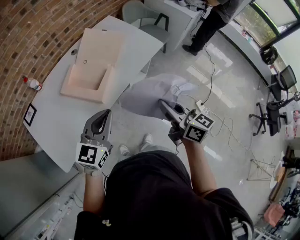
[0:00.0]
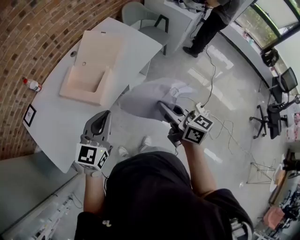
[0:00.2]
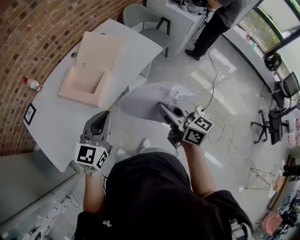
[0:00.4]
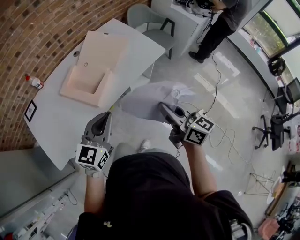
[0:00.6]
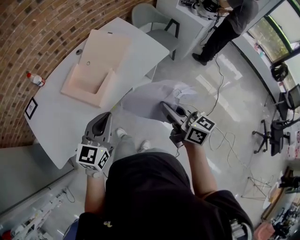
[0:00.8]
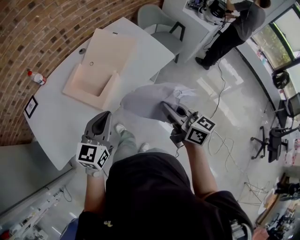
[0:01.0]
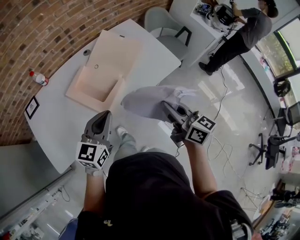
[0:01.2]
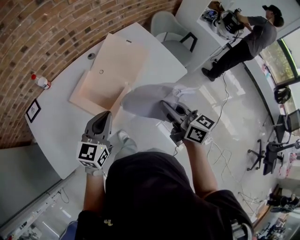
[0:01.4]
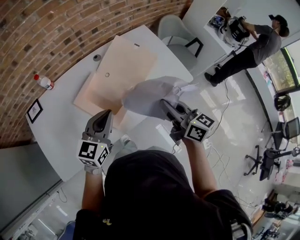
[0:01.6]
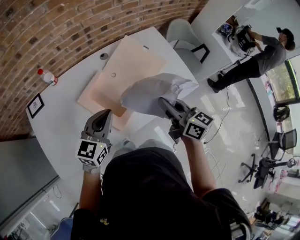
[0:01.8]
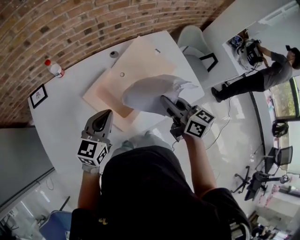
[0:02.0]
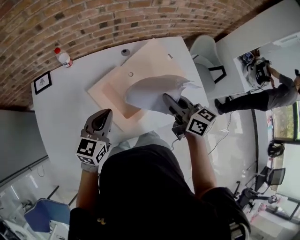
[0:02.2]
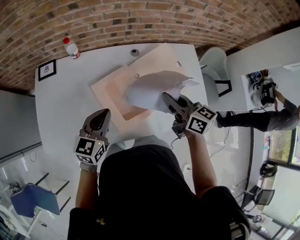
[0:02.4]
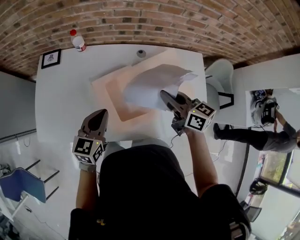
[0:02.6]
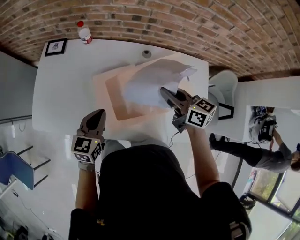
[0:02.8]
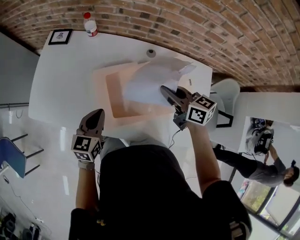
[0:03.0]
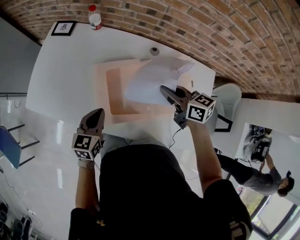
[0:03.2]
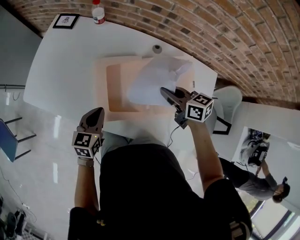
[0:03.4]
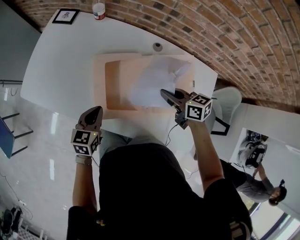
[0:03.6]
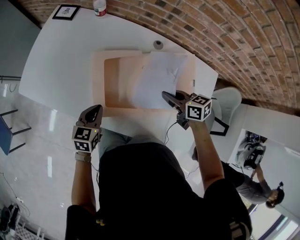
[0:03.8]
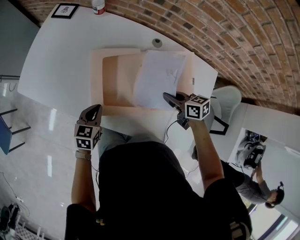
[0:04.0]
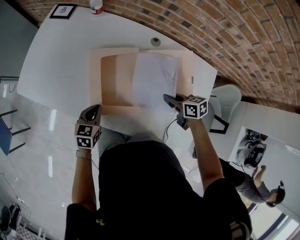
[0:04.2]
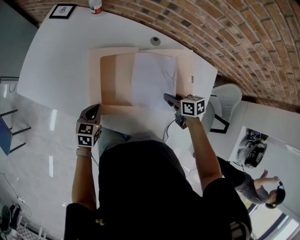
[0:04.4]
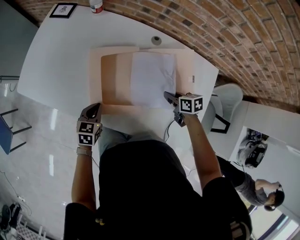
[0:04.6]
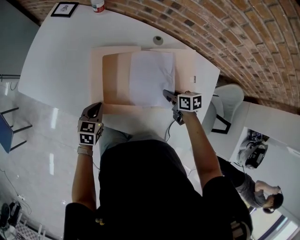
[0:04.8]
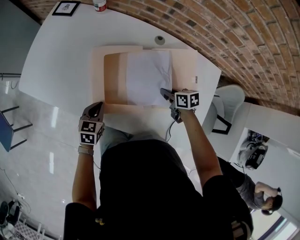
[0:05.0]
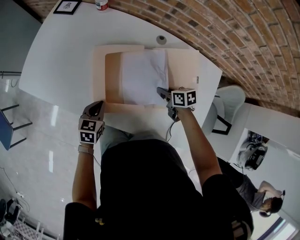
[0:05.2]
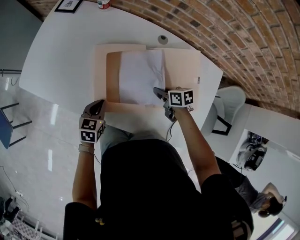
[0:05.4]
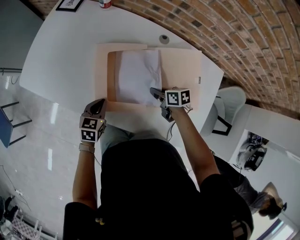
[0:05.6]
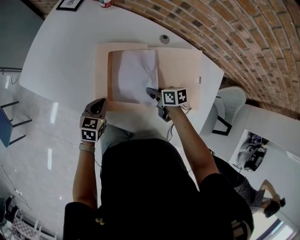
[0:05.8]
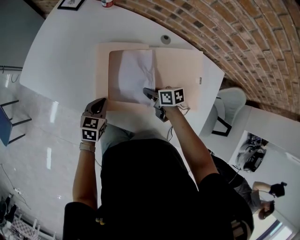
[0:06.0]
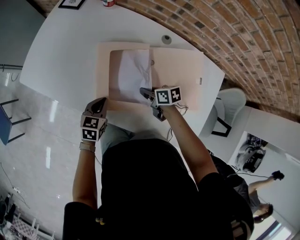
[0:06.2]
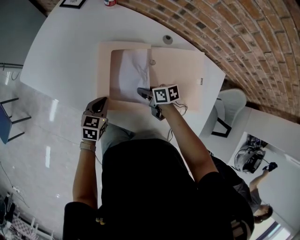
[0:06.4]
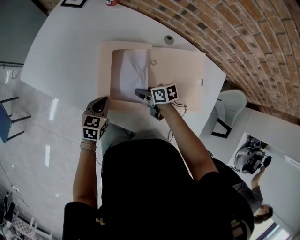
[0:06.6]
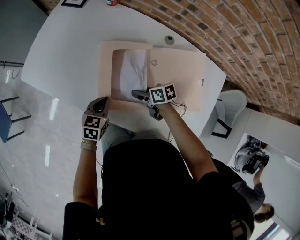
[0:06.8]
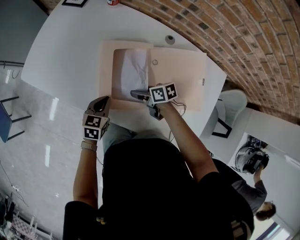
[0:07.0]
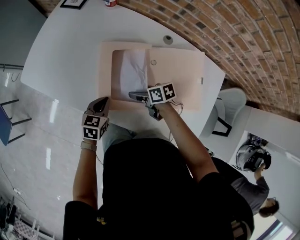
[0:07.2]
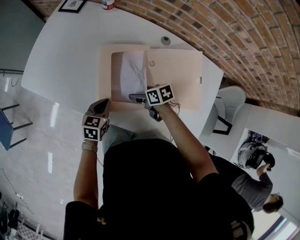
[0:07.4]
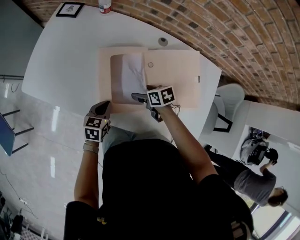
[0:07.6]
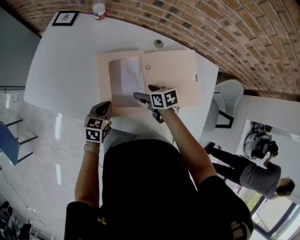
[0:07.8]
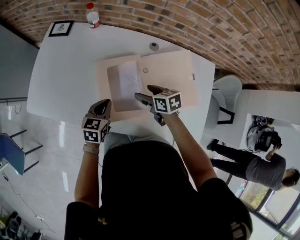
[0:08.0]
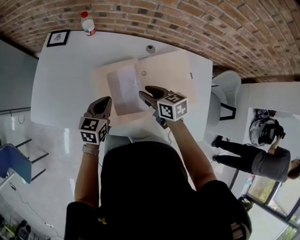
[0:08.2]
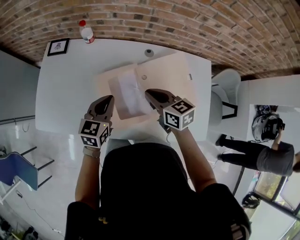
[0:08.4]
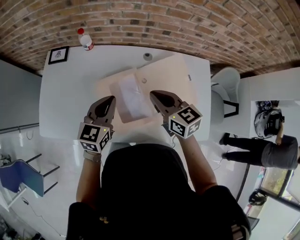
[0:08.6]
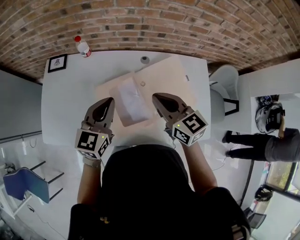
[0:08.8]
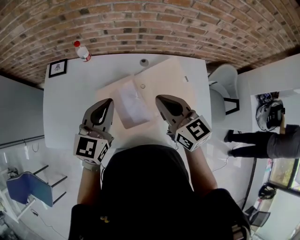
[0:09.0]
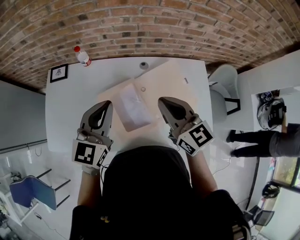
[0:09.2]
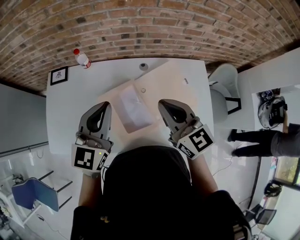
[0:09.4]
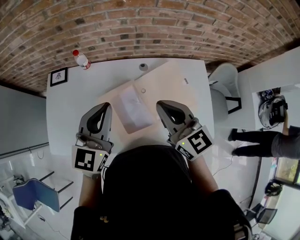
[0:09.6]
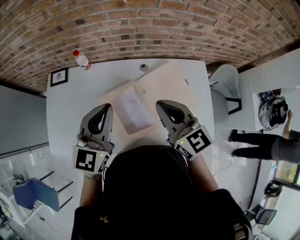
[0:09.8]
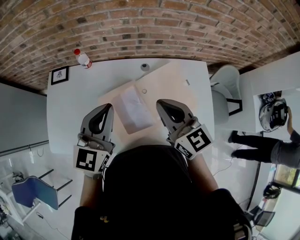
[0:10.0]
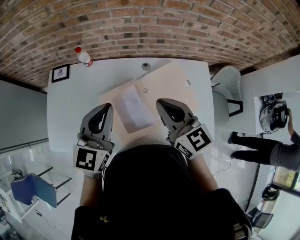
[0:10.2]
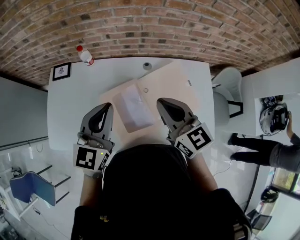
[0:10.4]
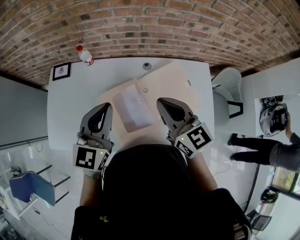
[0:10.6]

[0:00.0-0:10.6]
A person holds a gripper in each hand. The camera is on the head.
0:00.0 to 0:01.6: Both grippers move forward, approximately 20 cm.
0:01.6 to 0:03.0: The left gripper travels downward by about 10 cm, and swivels some 50 degrees; the right gripper shifts by some 30 cm, and swivels approximately 60 degrees.
0:03.0 to 0:04.6: The grippers both shift downward by approximately 20 cm. The right gripper turns by roughly 30 degrees.
0:04.6 to 0:06.0: The right gripper is displaced to the left by approximately 15 cm.
0:06.0 to 0:07.6: The right gripper opens up.
0:07.6 to 0:09.0: Both grippers move upward, approximately 35 cm. The left gripper points its fingers some 30 degrees further upward; the right gripper points its fingers approximately 40 degrees further upward, and closes its fingers.
0:09.0 to 0:10.6: The grippers stay close to where they were, moving slightly.

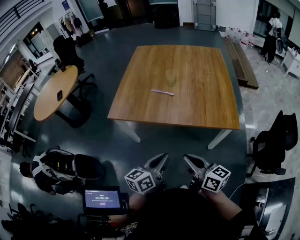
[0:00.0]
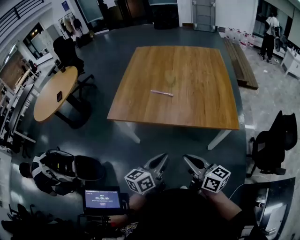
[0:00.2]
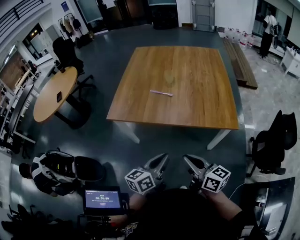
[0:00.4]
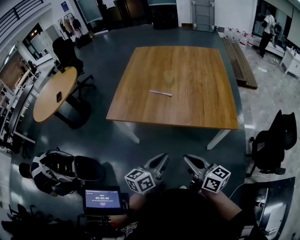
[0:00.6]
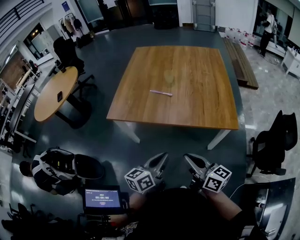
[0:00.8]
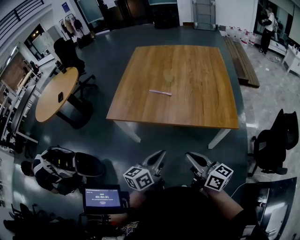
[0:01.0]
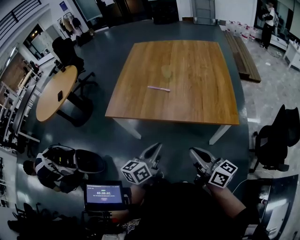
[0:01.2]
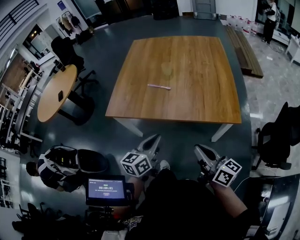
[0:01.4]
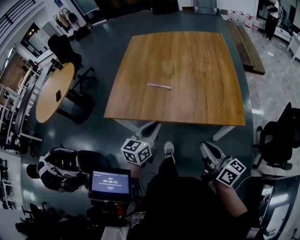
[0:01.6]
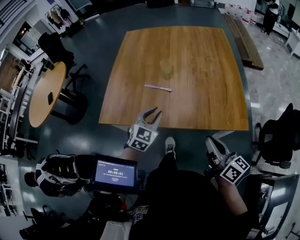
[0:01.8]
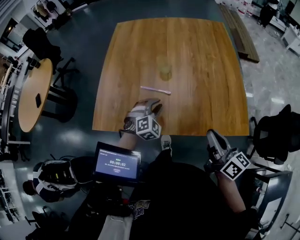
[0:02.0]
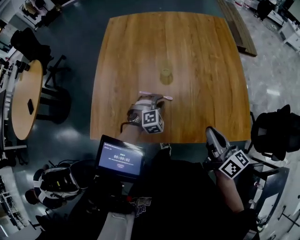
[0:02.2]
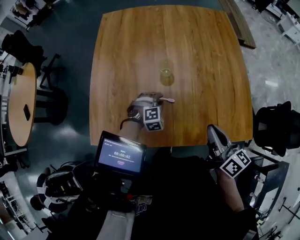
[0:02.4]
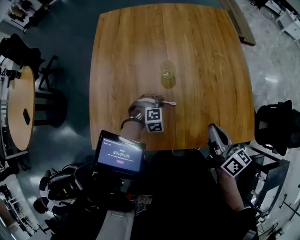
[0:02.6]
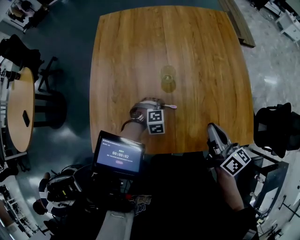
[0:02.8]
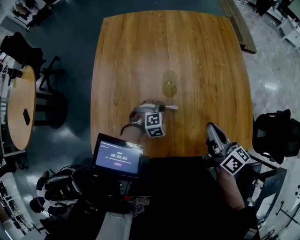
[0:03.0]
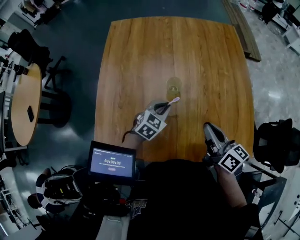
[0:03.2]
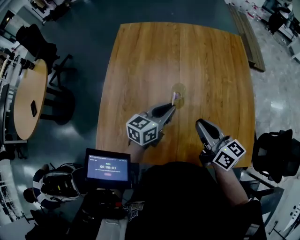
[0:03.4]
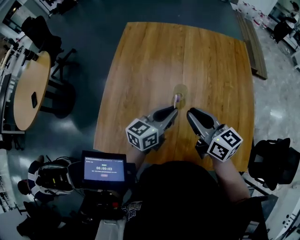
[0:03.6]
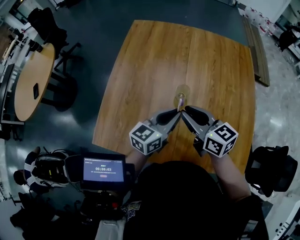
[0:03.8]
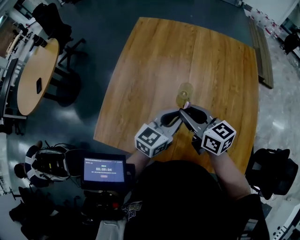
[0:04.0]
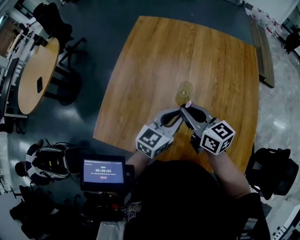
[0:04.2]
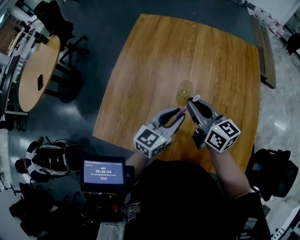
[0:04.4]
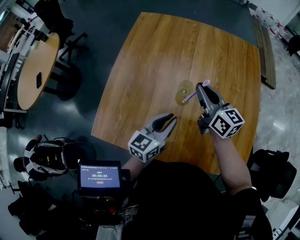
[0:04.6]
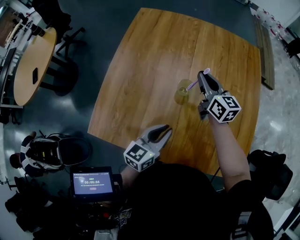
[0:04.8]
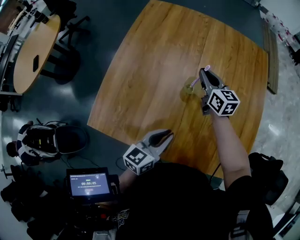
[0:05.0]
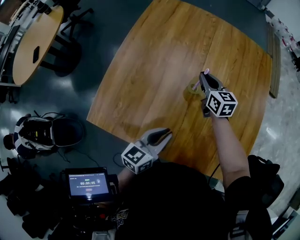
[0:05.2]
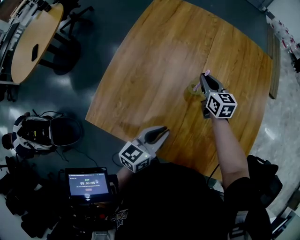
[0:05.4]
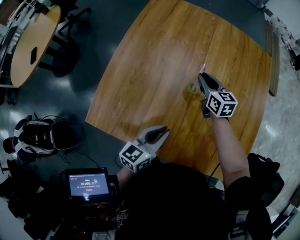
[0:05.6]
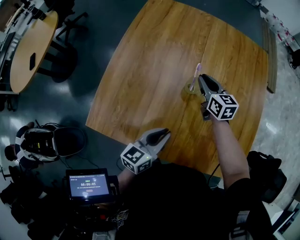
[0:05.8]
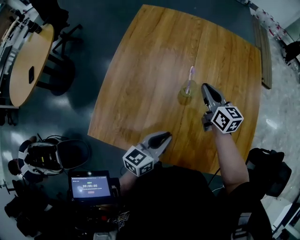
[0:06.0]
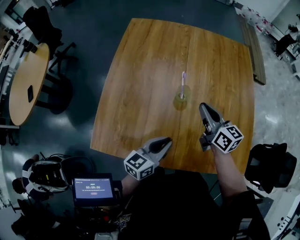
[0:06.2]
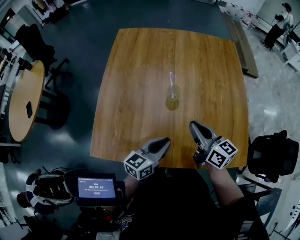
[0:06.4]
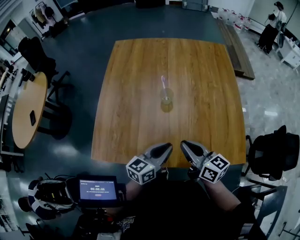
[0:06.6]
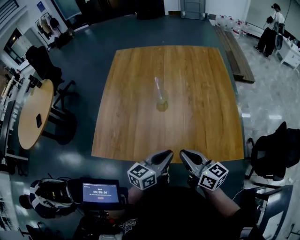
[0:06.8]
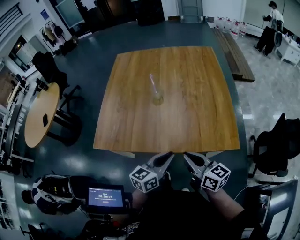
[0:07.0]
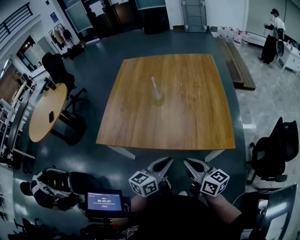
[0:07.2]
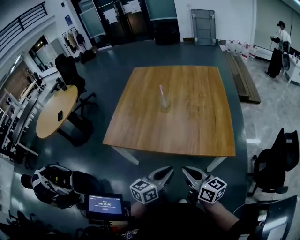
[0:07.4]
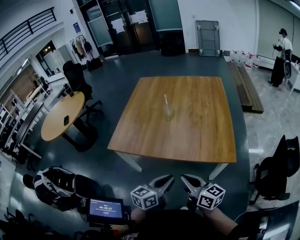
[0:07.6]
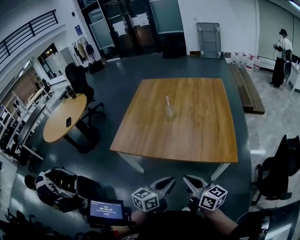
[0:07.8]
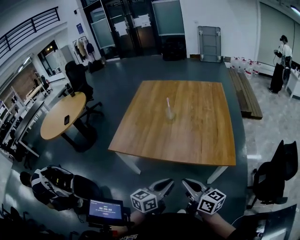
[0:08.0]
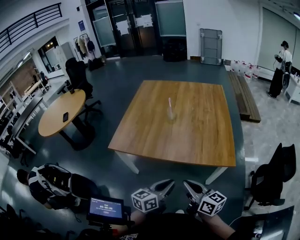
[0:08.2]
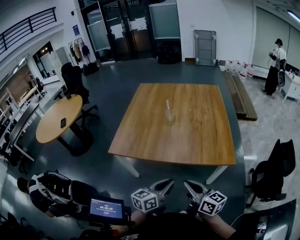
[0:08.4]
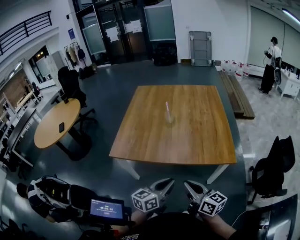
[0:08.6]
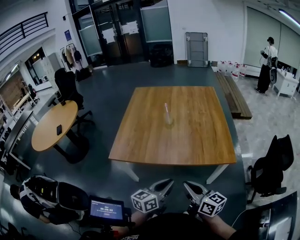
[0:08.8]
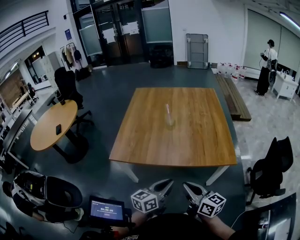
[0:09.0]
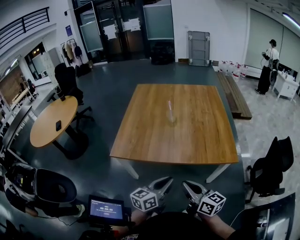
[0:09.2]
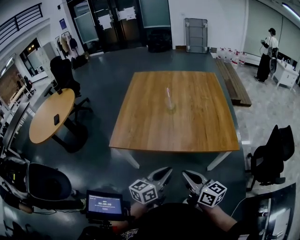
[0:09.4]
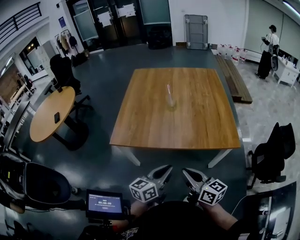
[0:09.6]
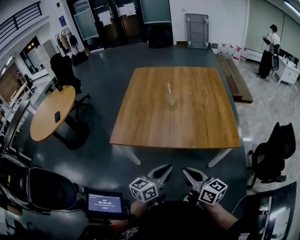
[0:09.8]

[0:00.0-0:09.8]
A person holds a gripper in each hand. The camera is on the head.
0:00.0 to 0:01.4: The right gripper goes about 10 cm to the right; the left gripper travels forward by about 5 cm.
0:01.4 to 0:02.8: The left gripper heads forward and downward, covering approximately 40 cm, and angles its fingers downward, by roughly 50 degrees. Meanwhile the right gripper is displaced forward by approximately 30 cm, and swivels some 20 degrees.
0:02.8 to 0:04.2: The left gripper heads upward, covering approximately 25 cm, and tilts its fingers roughly 60 degrees upward; the right gripper travels to the left and forward by some 15 cm, and changes its angle by approximately 40 degrees.
0:04.2 to 0:05.6: The right gripper heads forward and downward, covering some 20 cm. The left gripper is displaced backward, downward and to the left by about 10 cm, and swivels some 20 degrees.
0:05.6 to 0:07.0: The right gripper travels backward by approximately 40 cm, and turns by approximately 30 degrees. The left gripper heads backward and to the right, covering about 25 cm.
0:07.0 to 0:08.4: The grippers both shift backward by about 15 cm.
0:08.4 to 0:09.8: Both grippers move to the left, about 5 cm.

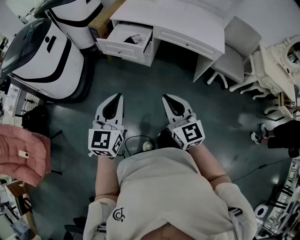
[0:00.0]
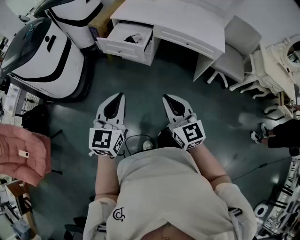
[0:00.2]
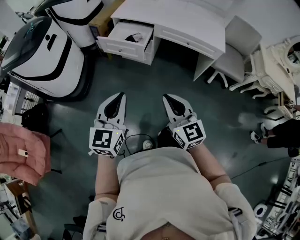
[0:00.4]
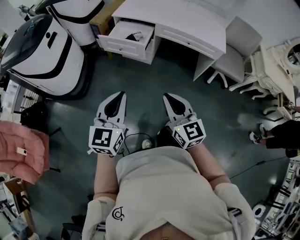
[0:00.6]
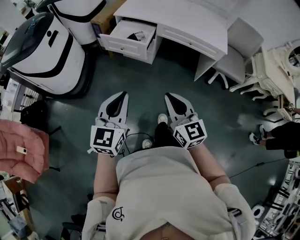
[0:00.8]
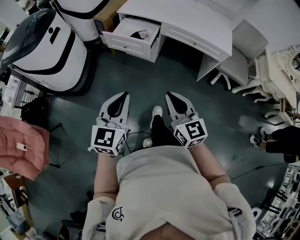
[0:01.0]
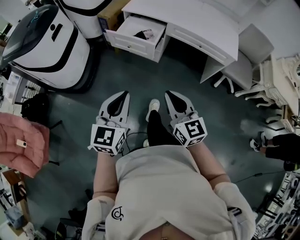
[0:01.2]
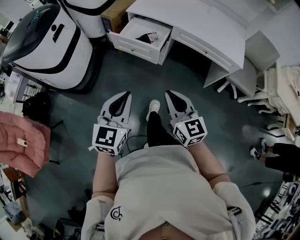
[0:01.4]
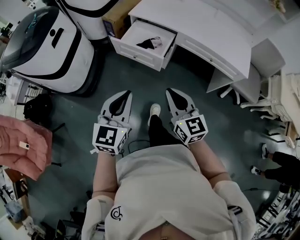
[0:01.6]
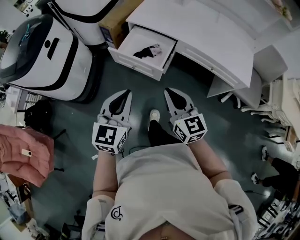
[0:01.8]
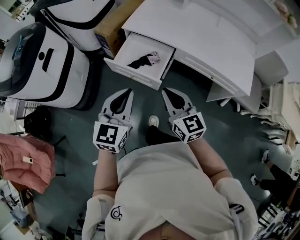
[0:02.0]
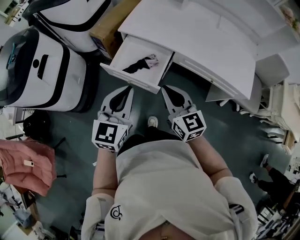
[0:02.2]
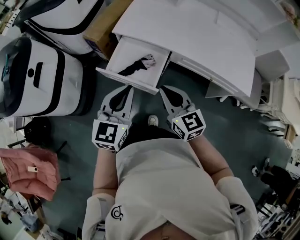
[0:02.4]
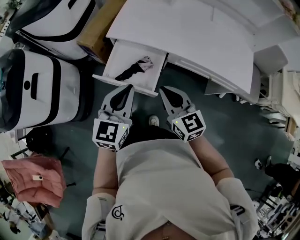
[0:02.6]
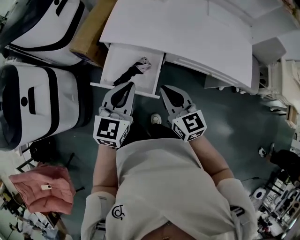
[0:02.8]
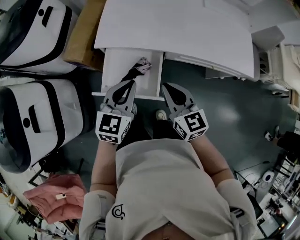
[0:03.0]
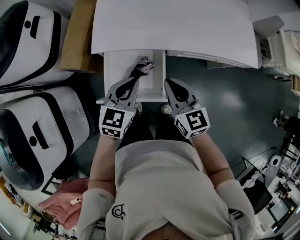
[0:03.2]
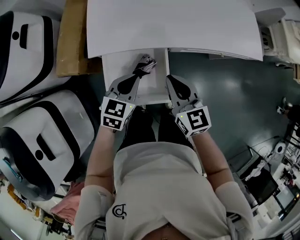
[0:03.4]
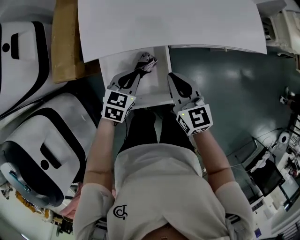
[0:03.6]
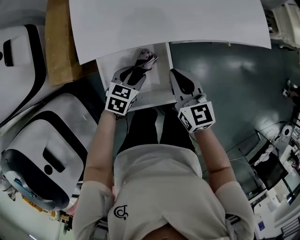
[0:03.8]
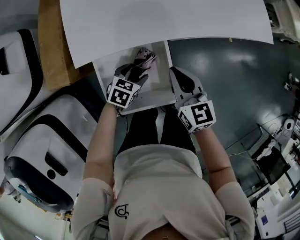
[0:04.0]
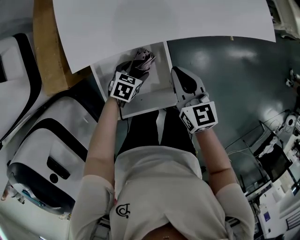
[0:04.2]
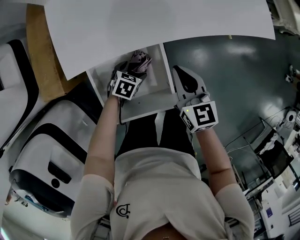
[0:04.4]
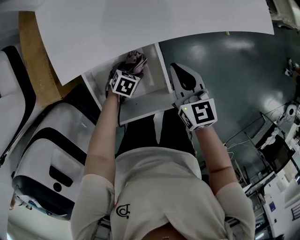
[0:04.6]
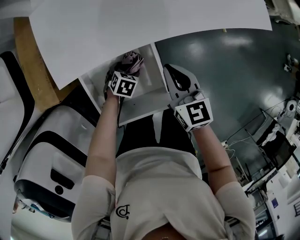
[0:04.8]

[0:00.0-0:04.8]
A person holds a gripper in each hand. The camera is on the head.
0:00.0 to 0:01.6: Both grippers move forward, approximately 15 cm.
0:01.6 to 0:03.2: The left gripper ends up roughly 50 cm from where it was, and turns by roughly 40 degrees. The right gripper moves approximately 35 cm, and rotates approximately 30 degrees.
0:03.2 to 0:04.8: The left gripper shifts roughly 35 cm downward, tips its fingers downward by roughly 40 degrees, and opens, while the right gripper moves downward, about 15 cm, and swivels approximately 20 degrees.
